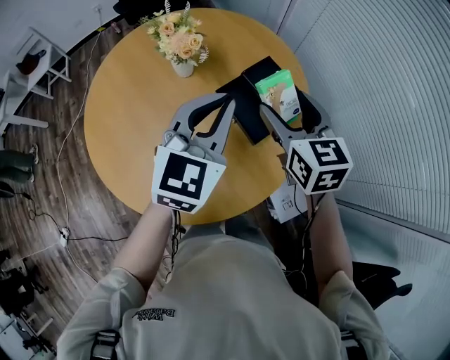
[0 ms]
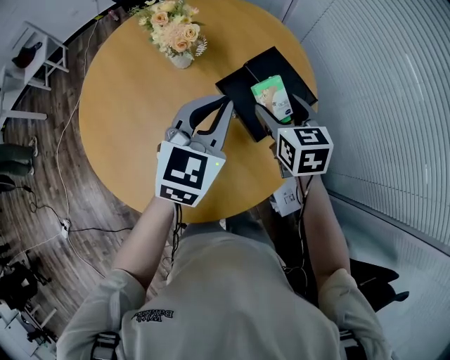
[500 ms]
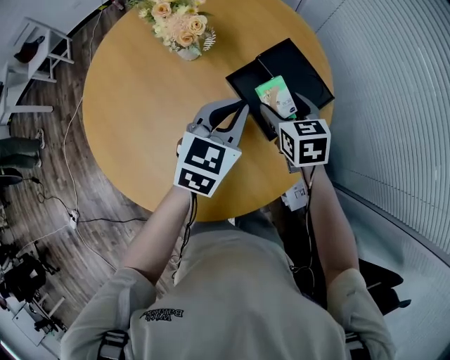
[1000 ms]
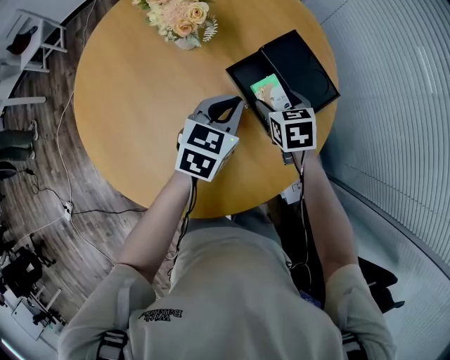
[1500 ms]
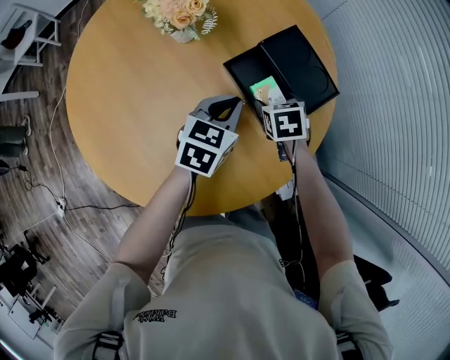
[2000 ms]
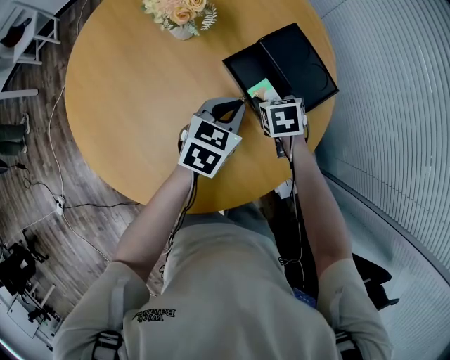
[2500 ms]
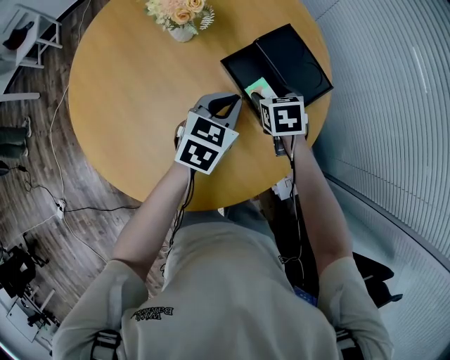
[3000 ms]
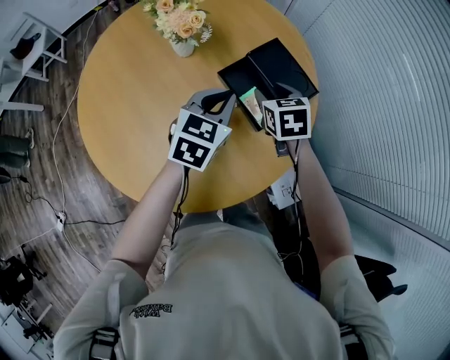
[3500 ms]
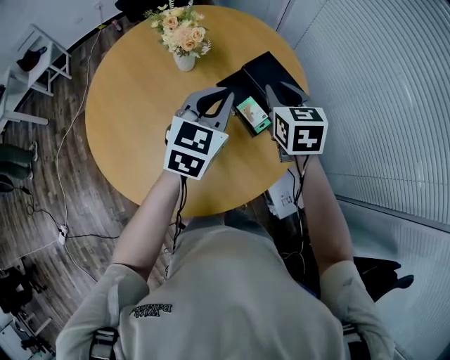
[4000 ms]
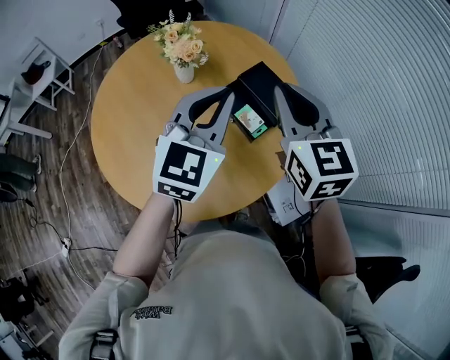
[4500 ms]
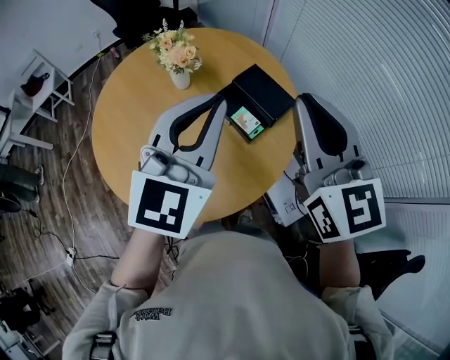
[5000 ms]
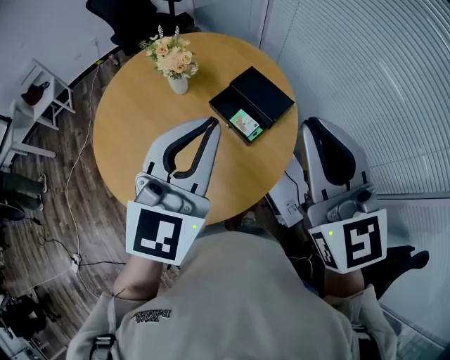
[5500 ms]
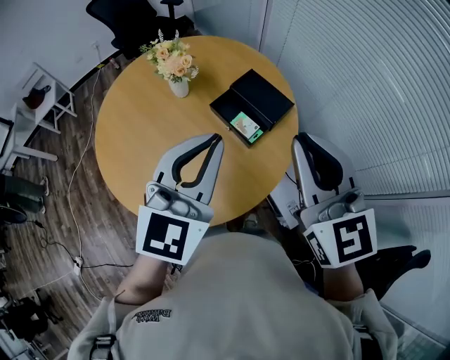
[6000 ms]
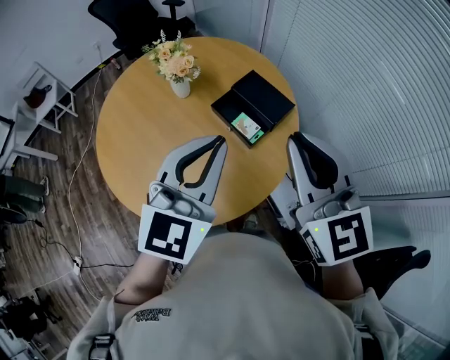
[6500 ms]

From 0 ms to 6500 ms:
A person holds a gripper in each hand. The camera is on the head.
From 0 ms to 2000 ms: Both grippers move downward, some 30 cm. The left gripper rotates roughly 30 degrees. Meanwhile the right gripper tilts its fingers roughly 40 degrees downward.
From 2000 ms to 4500 ms: The grippers both shift upward by approximately 35 cm. The right gripper tips its fingers upward by roughly 50 degrees, and closes. Meanwhile the left gripper rotates about 40 degrees.
From 4500 ms to 6500 ms: The right gripper goes approximately 15 cm backward and upward. Meanwhile the left gripper heads backward, covering some 10 cm.

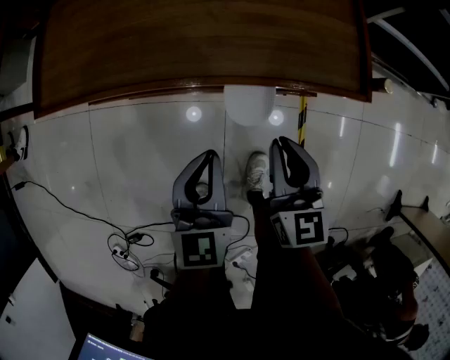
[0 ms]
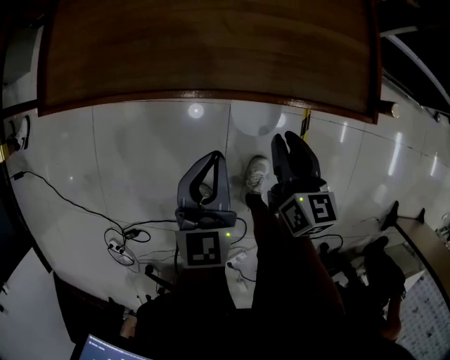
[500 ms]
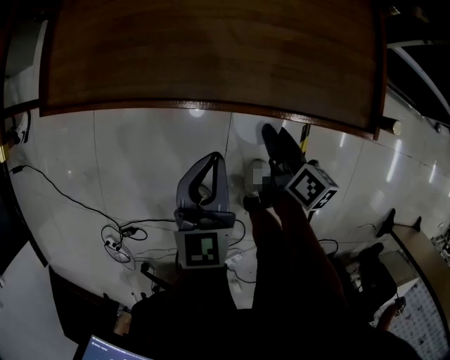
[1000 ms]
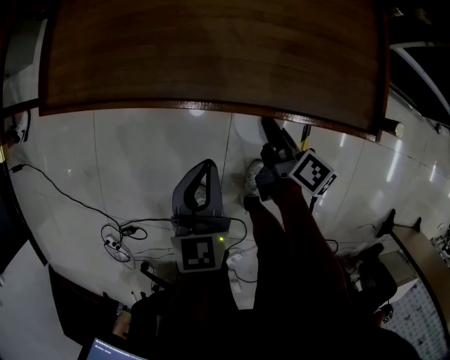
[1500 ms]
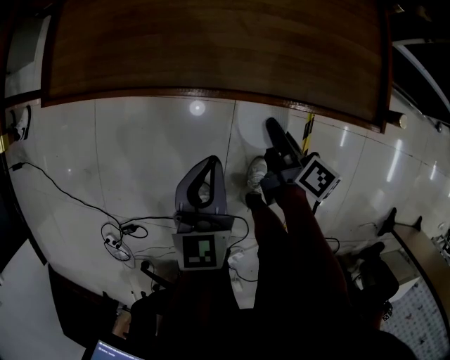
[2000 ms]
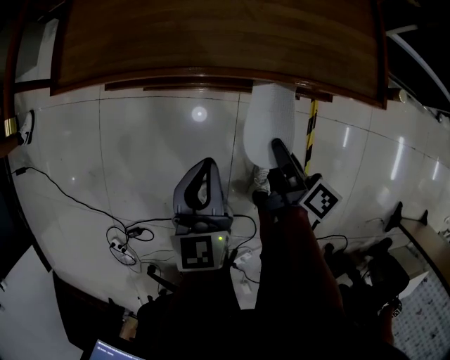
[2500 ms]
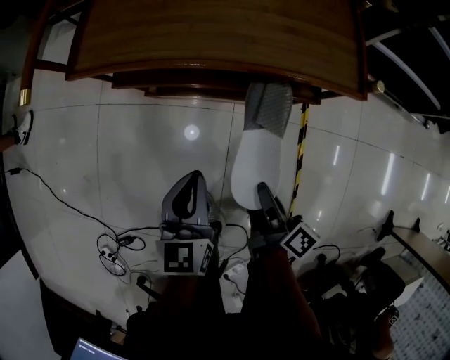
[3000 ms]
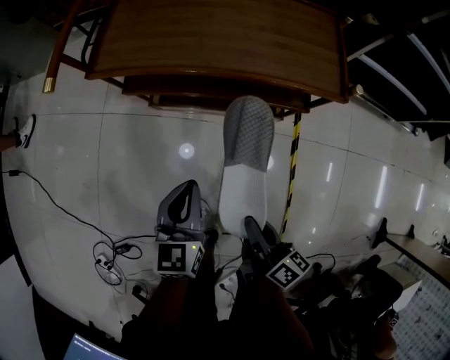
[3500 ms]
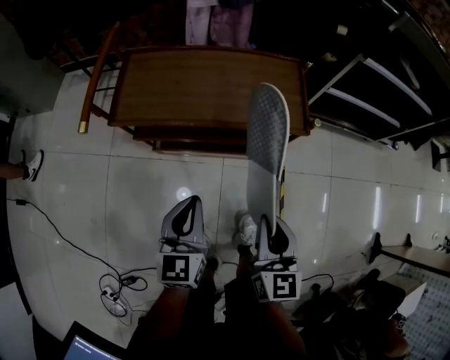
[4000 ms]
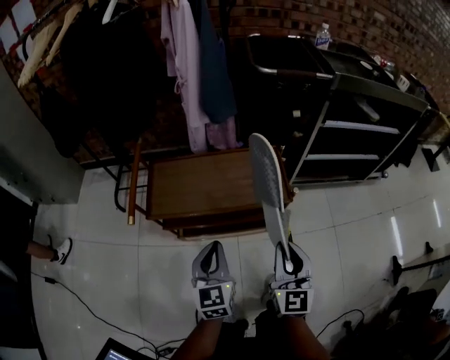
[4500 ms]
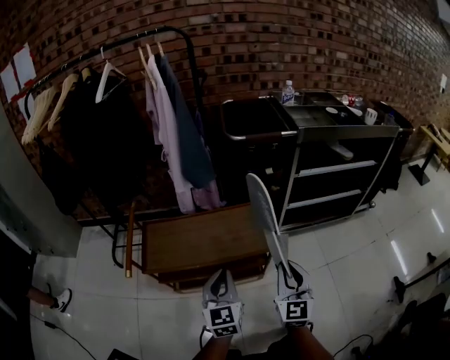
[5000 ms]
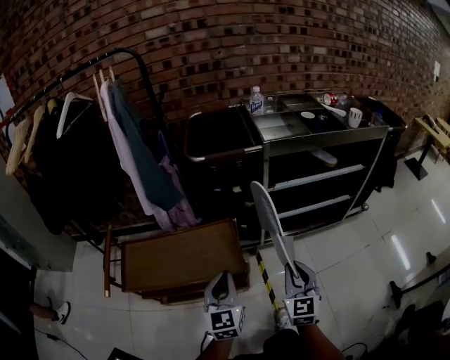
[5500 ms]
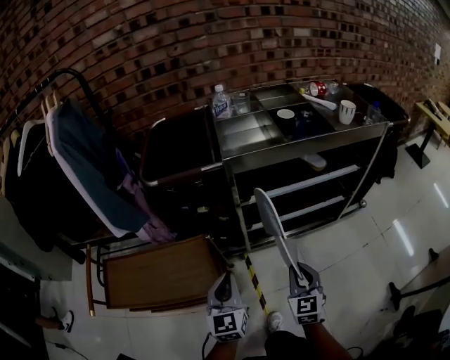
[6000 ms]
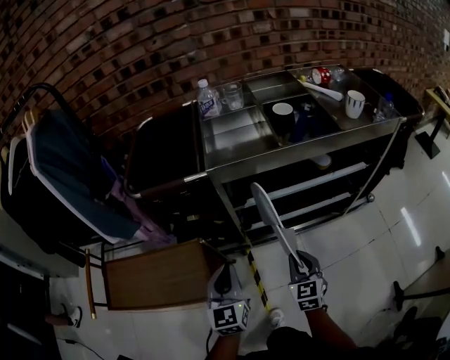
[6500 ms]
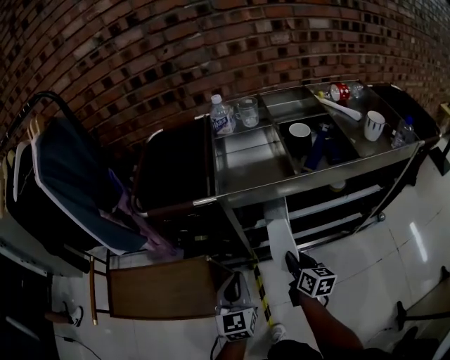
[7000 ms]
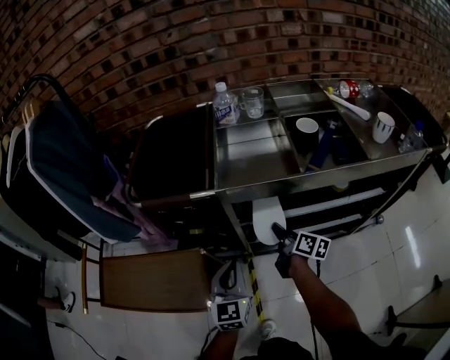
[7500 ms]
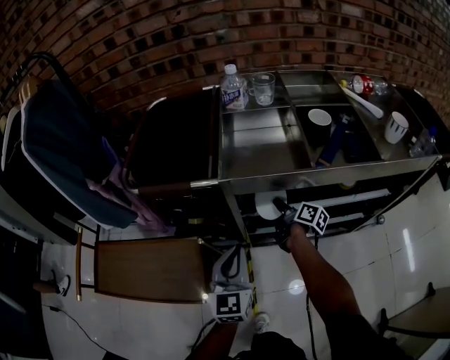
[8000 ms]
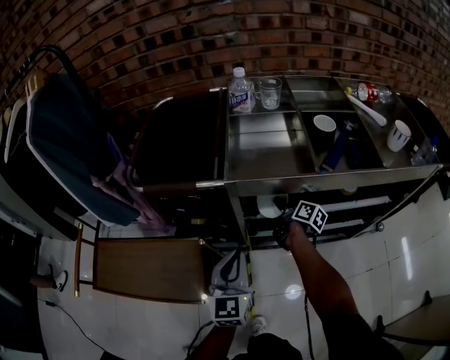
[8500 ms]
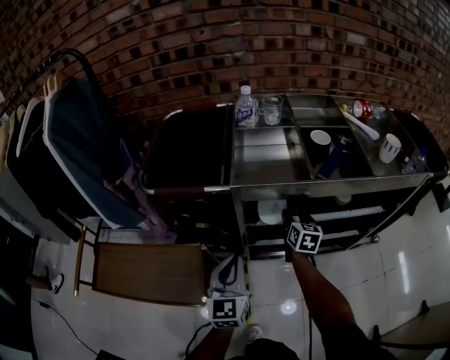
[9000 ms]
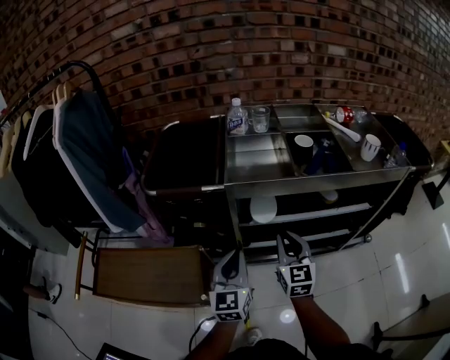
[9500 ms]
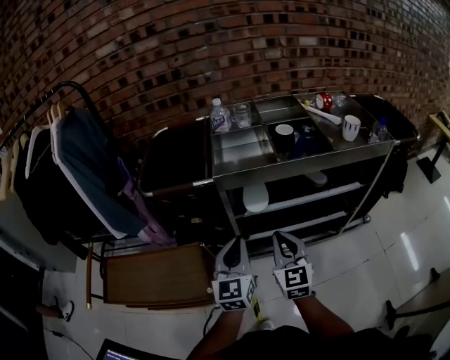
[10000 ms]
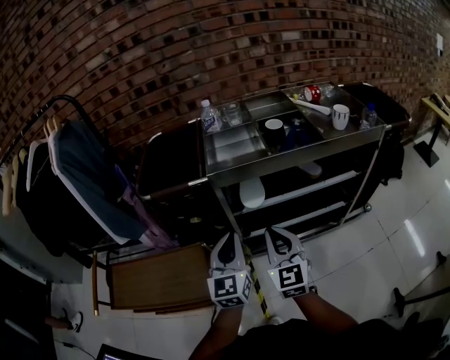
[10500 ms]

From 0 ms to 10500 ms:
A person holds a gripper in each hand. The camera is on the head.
From 0 ms to 2000 ms: The right gripper goes approximately 10 cm downward and forward, twists roughly 60 degrees clockwise, seen from behind, and opens, then closes once more.
From 2000 ms to 4000 ms: The right gripper travels upward and backward by about 35 cm, and rolls counterclockwise, seen from behind, by about 60 degrees; the left gripper is displaced upward and backward by about 20 cm.
From 4000 ms to 6500 ms: The two grippers travel together, to the right and forward, roughly 50 cm. The right gripper rotates some 20 degrees, while the left gripper shifts some 20 cm upward.
From 6500 ms to 8500 ms: The right gripper goes some 30 cm forward, and rotates around the line of its fingers by some 70 degrees, clockwise from behind, while the left gripper goes approximately 10 cm forward.
From 8500 ms to 10500 ms: The left gripper shifts approximately 10 cm upward and backward, while the right gripper shifts about 35 cm backward and upward, twists about 80 degrees counterclockwise, seen from behind, and closes up.

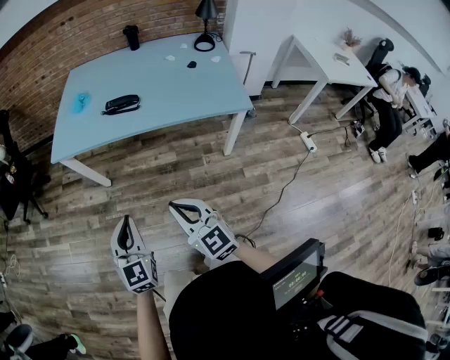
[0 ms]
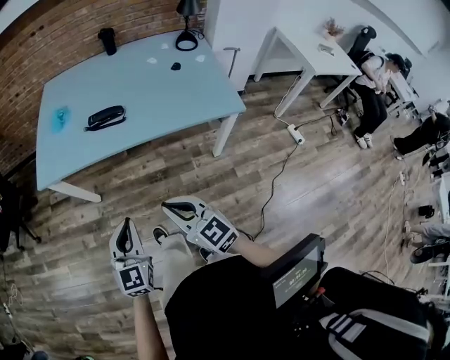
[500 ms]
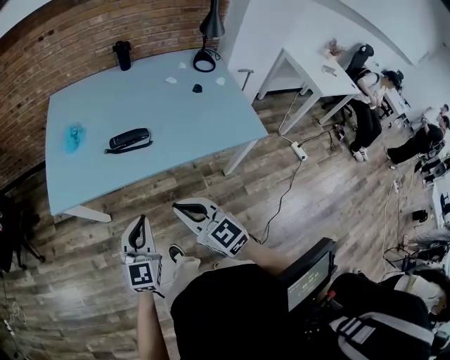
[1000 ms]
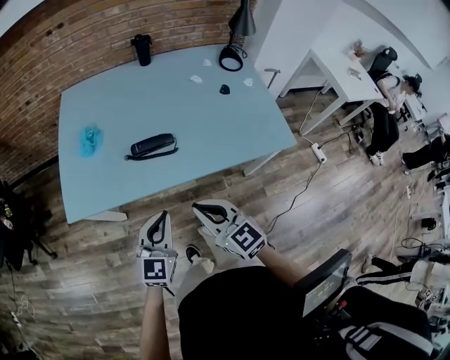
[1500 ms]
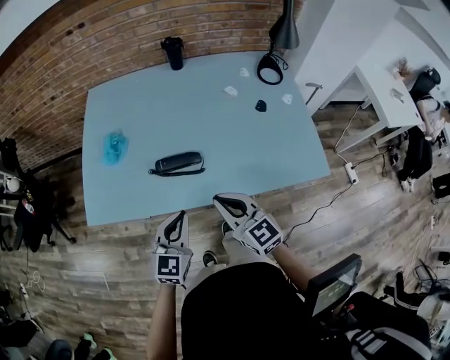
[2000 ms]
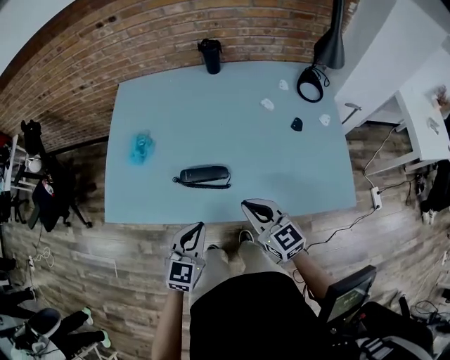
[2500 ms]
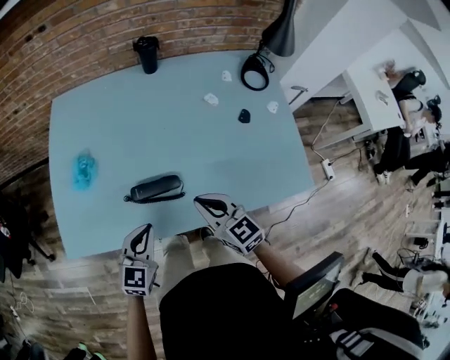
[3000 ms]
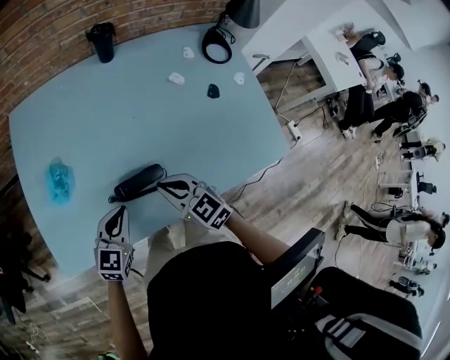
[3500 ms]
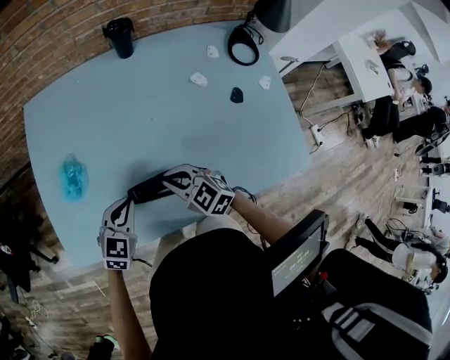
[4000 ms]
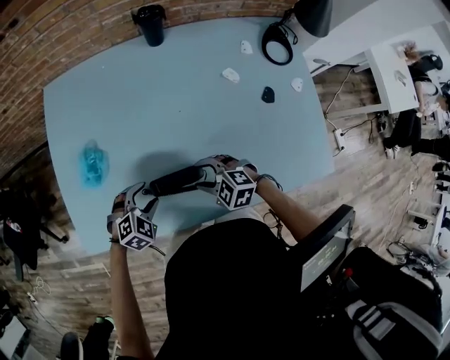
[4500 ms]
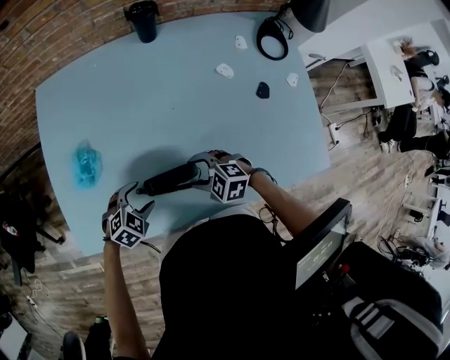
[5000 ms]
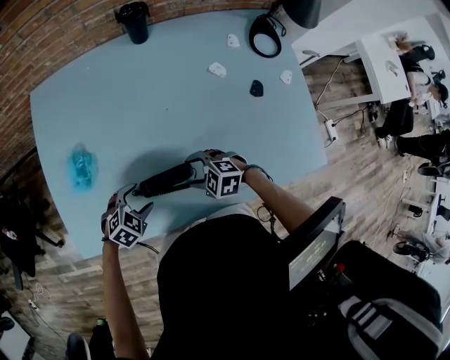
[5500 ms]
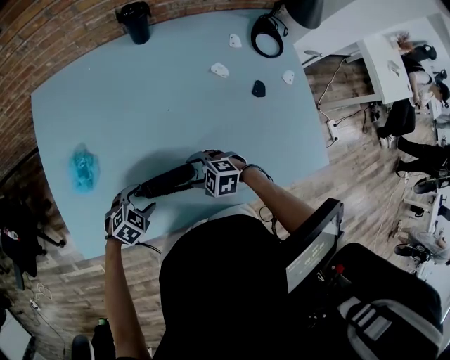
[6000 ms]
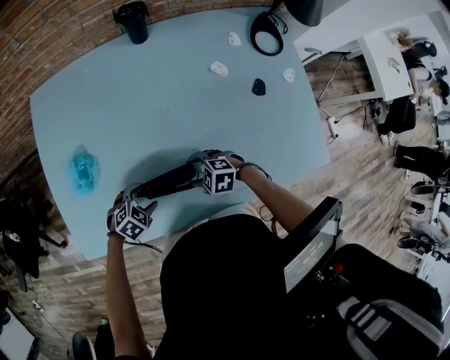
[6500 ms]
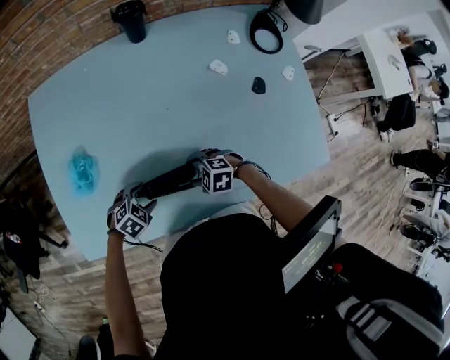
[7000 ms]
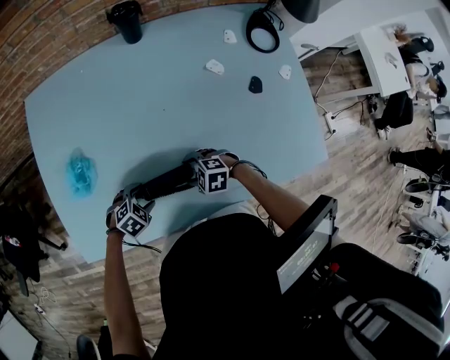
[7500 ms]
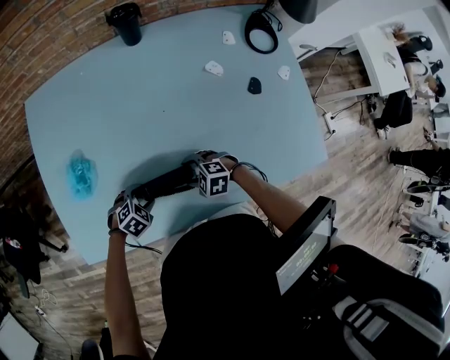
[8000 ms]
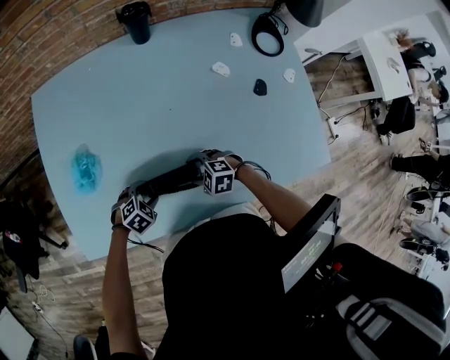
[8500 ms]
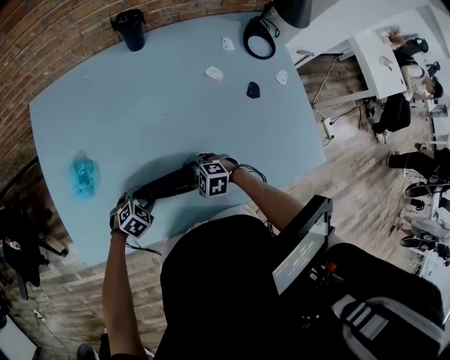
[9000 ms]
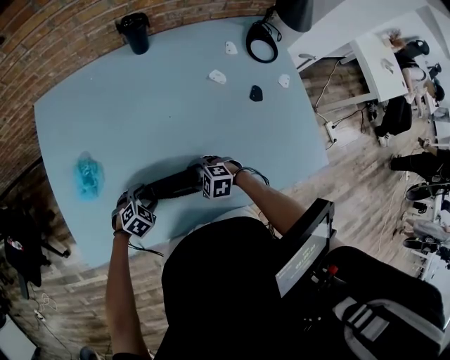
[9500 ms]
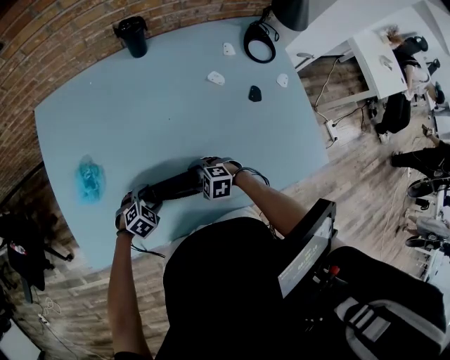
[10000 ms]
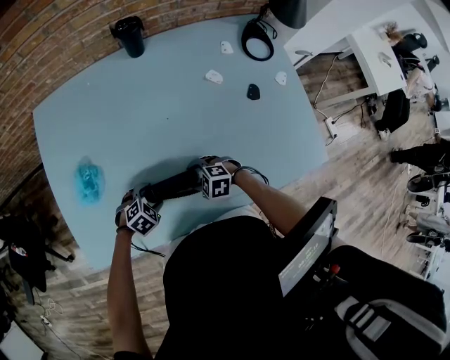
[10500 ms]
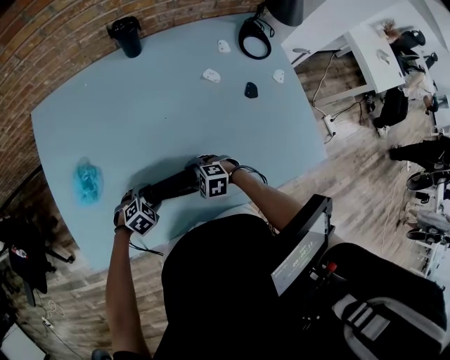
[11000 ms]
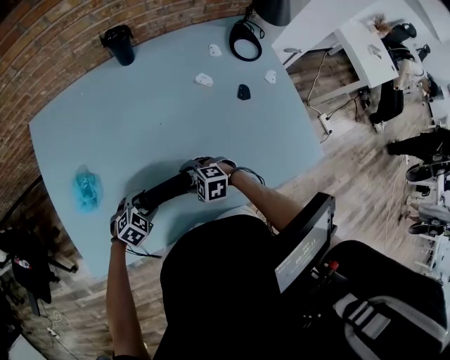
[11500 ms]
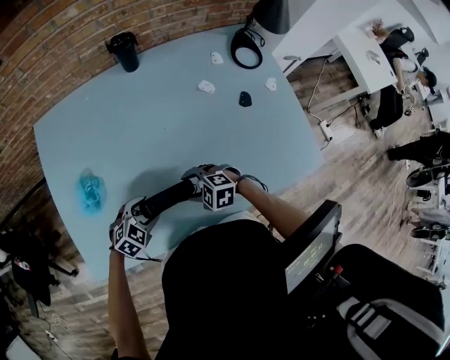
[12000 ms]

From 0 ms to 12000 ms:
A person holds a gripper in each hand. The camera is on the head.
From 0 ms to 2000 ms: The pair of grippers is taken forward, roughly 40 cm. The left gripper changes its angle by approximately 20 degrees.
From 2000 ms to 4000 ms: The right gripper shifts some 25 cm forward and downward, and turns by some 30 degrees, while the left gripper goes approximately 20 cm forward, and rotates some 20 degrees.
From 4000 ms to 6000 ms: Both grippers move downward, approximately 10 cm. The right gripper swivels approximately 30 degrees, and opens, while the left gripper changes its angle by some 40 degrees, and opens.
From 6000 ms to 10000 ms: The grippers stay close to where they were, moving slightly.
From 10000 ms to 12000 ms: Both grippers travel together upward, roughly 5 cm.
